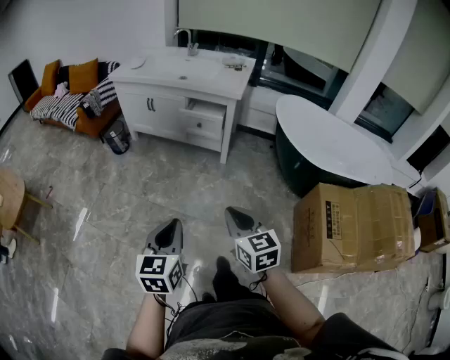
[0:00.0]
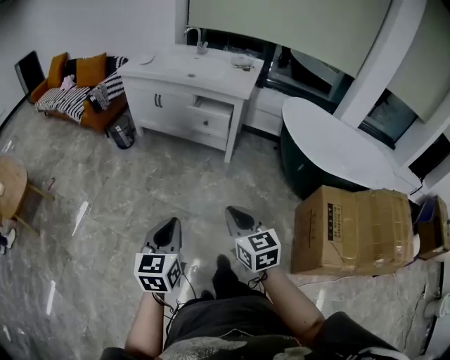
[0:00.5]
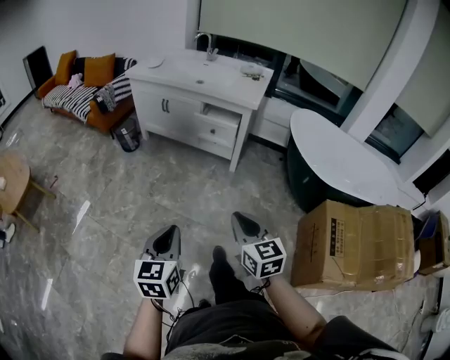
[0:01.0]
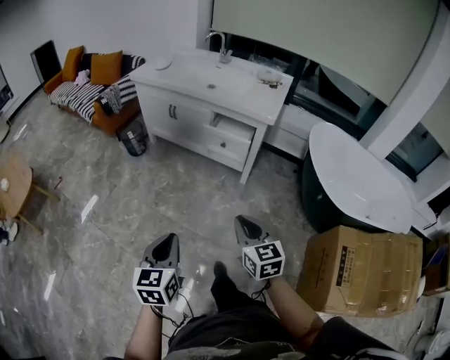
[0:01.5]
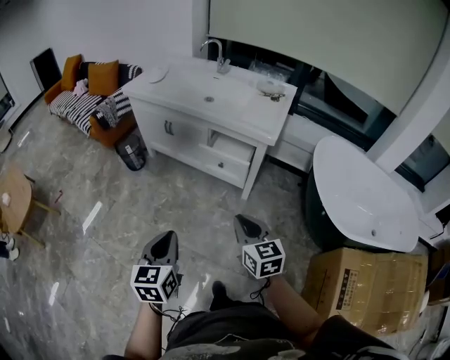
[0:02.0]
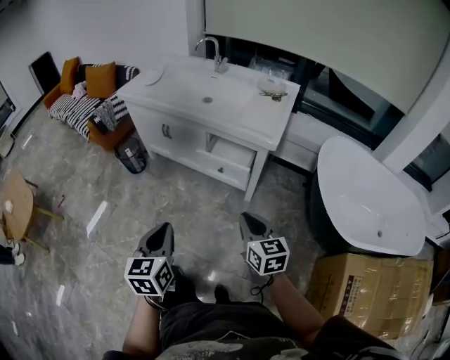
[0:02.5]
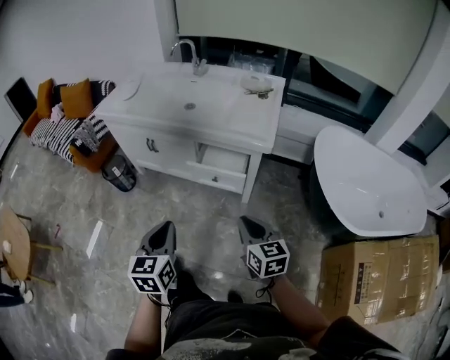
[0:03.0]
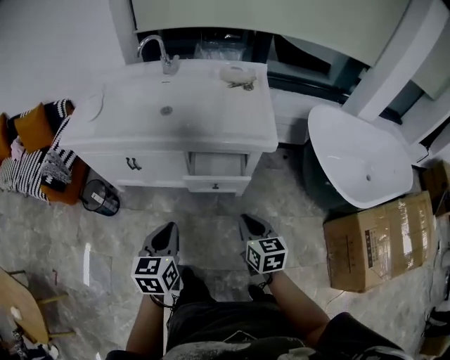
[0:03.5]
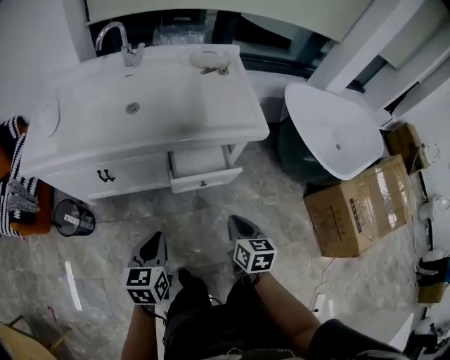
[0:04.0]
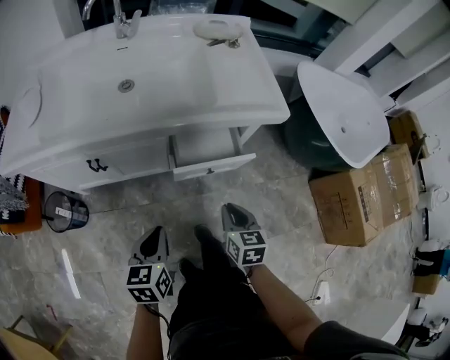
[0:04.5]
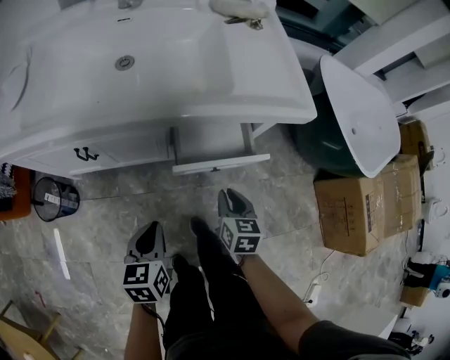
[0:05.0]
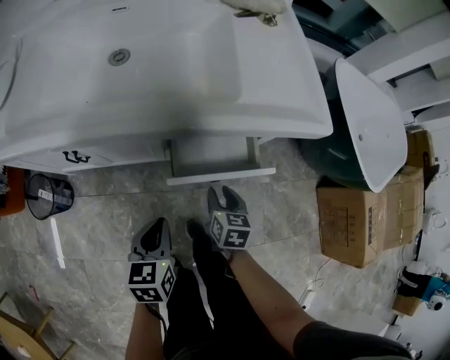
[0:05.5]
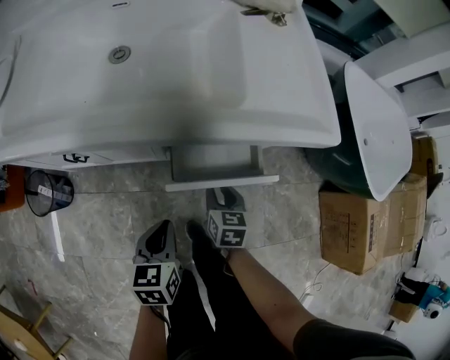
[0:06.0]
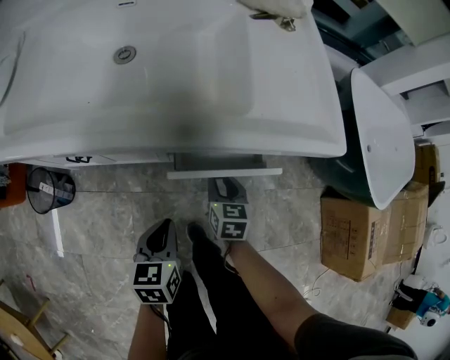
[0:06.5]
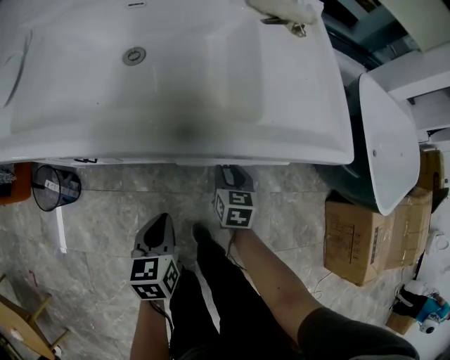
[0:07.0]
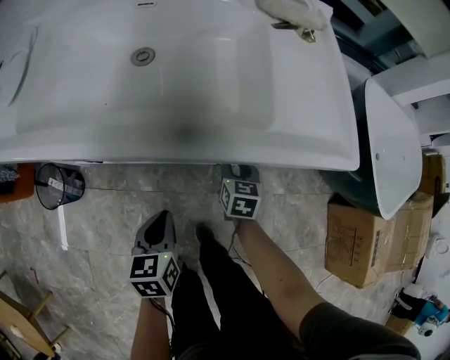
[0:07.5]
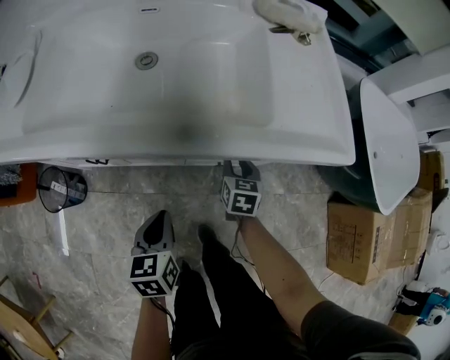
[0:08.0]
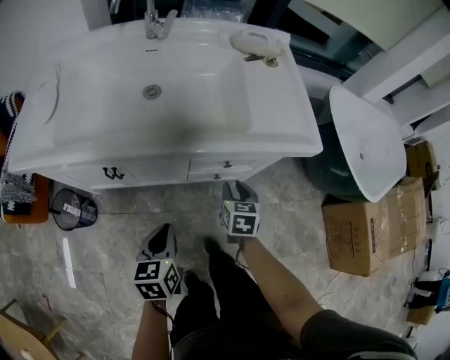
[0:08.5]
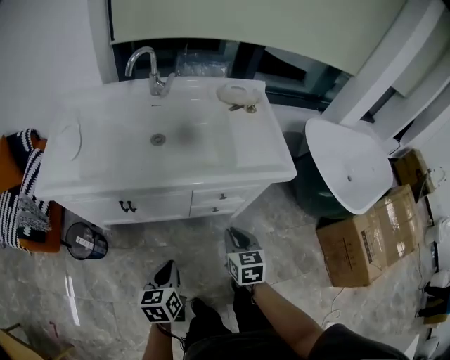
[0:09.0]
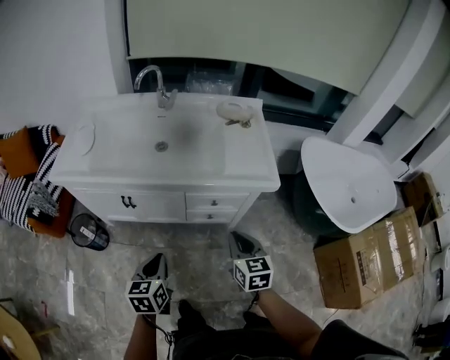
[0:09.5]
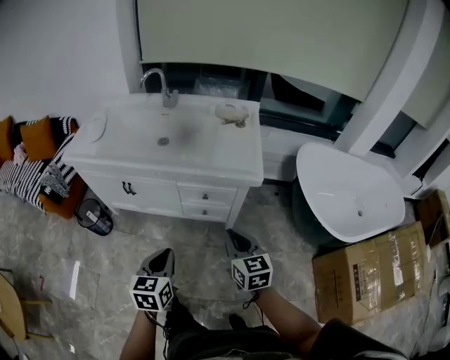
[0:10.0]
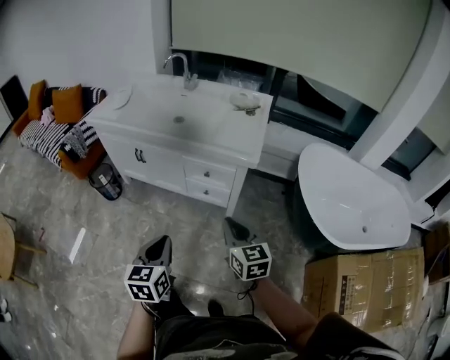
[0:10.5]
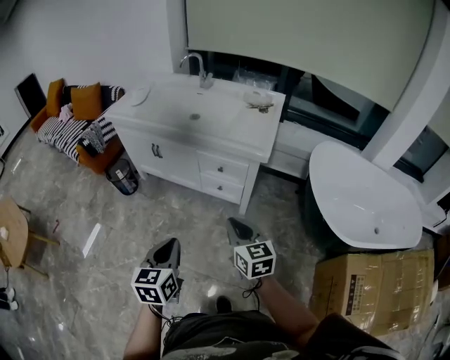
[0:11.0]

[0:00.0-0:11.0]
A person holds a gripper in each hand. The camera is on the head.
0:00.0 to 0:02.0: The grippers both shift forward by some 30 cm.
0:02.0 to 0:03.5: The left gripper moves some 35 cm, and turns by about 30 degrees, while the right gripper ends up some 25 cm from where it was, and rotates some 30 degrees.
0:03.5 to 0:05.5: The grippers both shift downward and forward by some 30 cm. The right gripper rotates approximately 20 degrees, and opens.
0:05.5 to 0:07.5: The right gripper heads forward, covering about 15 cm; the left gripper travels forward by roughly 5 cm.
0:07.5 to 0:09.0: The left gripper travels upward and backward by approximately 20 cm, while the right gripper goes roughly 30 cm upward and backward.
0:09.0 to 0:11.0: The right gripper shifts by some 35 cm, and turns by some 40 degrees. The left gripper moves roughly 40 cm, and changes its angle by approximately 30 degrees.

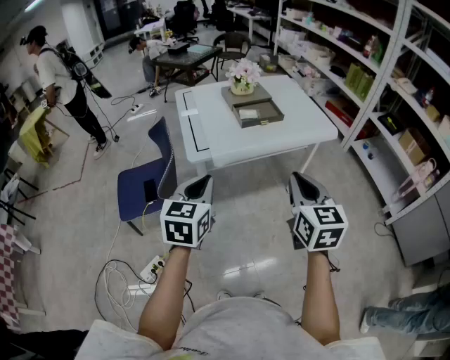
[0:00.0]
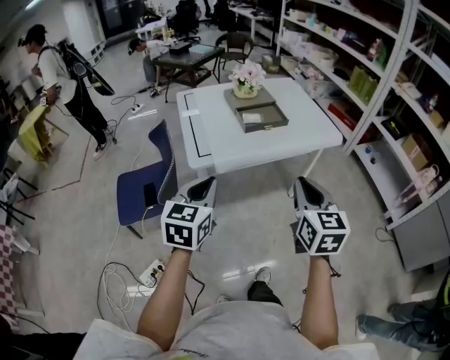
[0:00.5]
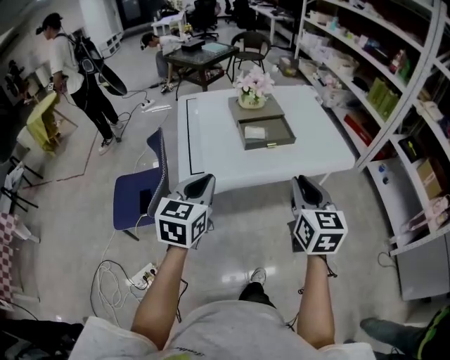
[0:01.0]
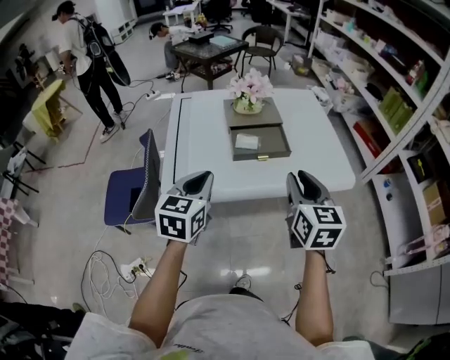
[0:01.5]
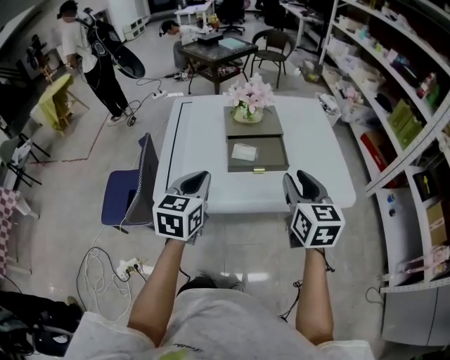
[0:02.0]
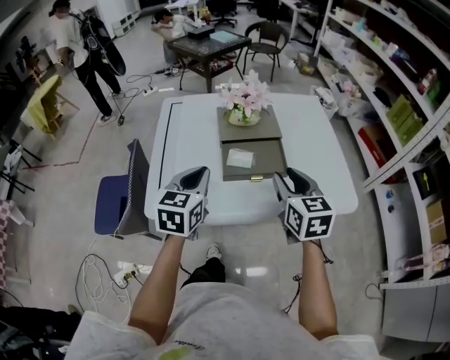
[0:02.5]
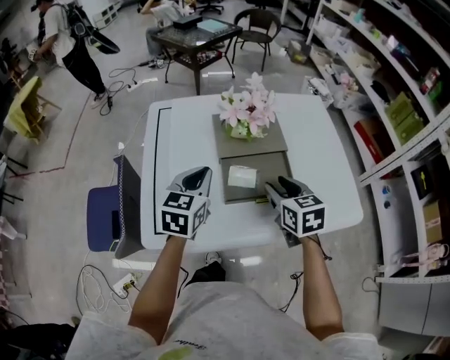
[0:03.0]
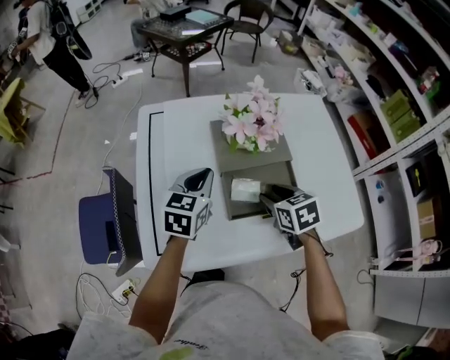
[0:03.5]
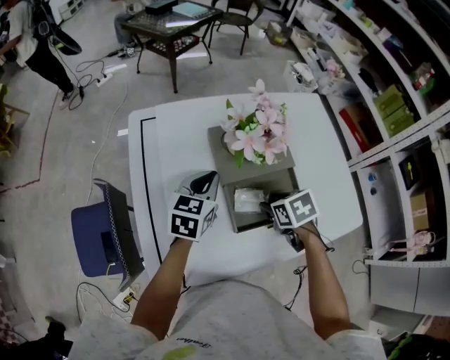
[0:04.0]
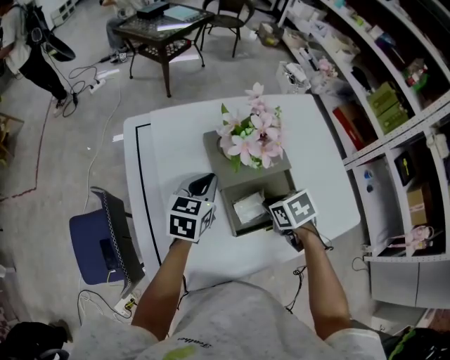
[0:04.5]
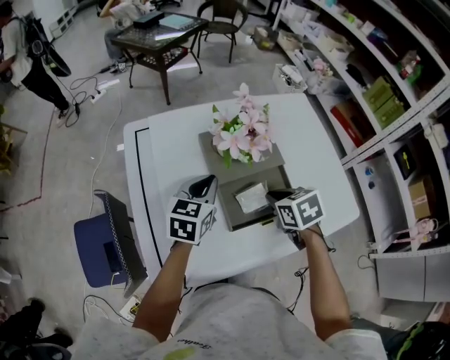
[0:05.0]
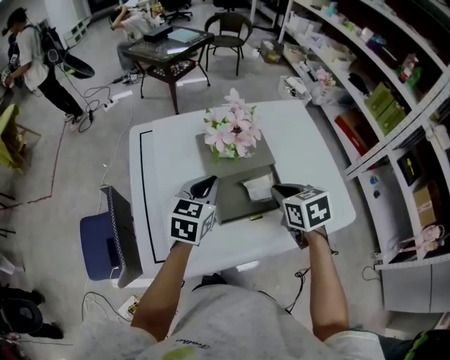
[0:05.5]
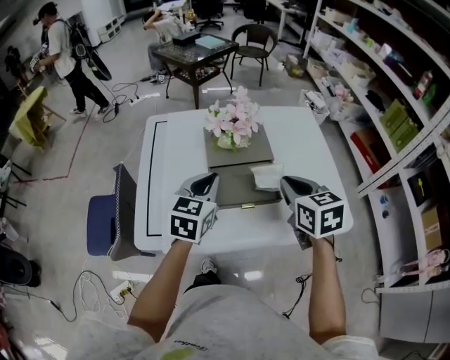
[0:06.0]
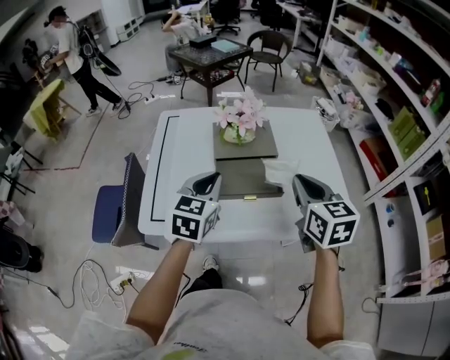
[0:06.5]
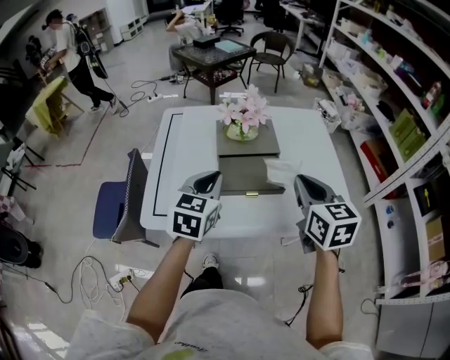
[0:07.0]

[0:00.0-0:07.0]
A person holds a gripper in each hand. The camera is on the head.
0:00.0 to 0:02.0: The grippers both shift forward by approximately 30 cm. The right gripper opens.
0:02.0 to 0:03.5: The right gripper is displaced forward and downward by roughly 25 cm, and tilts its fingers approximately 40 degrees downward, while the left gripper shifts about 25 cm forward.
0:03.5 to 0:05.0: The right gripper closes up.
0:05.0 to 0:07.0: The right gripper goes about 20 cm upward, backward and to the right, and angles its fingers upward, by some 40 degrees; the left gripper shifts roughly 20 cm backward and upward.

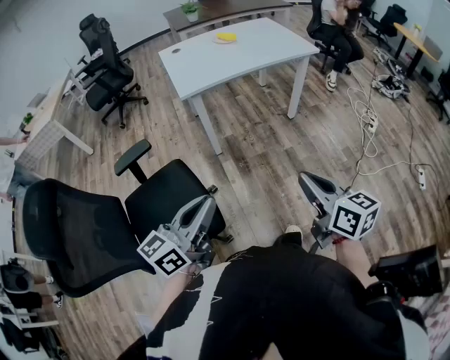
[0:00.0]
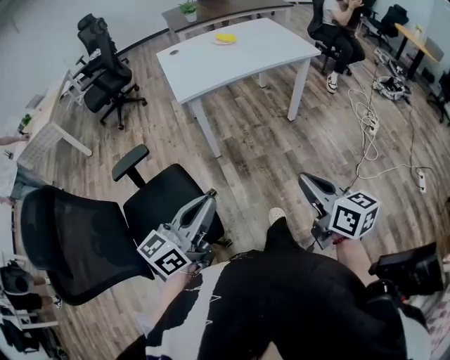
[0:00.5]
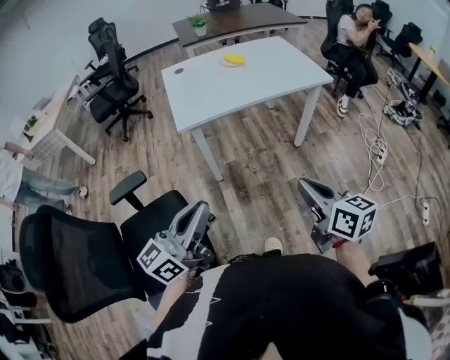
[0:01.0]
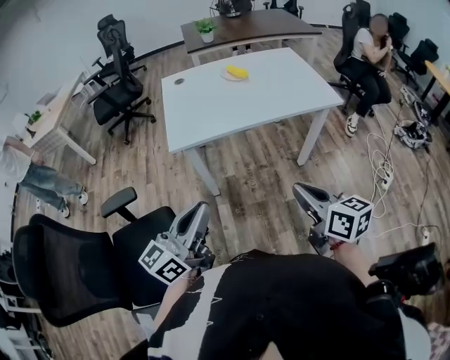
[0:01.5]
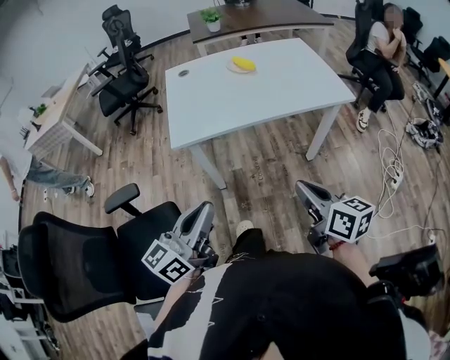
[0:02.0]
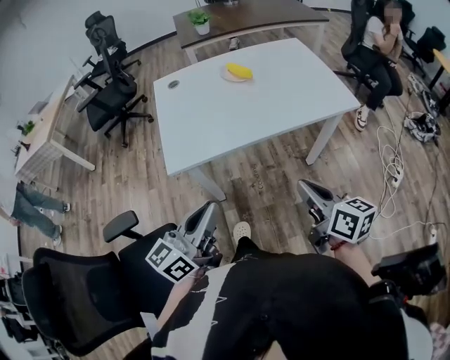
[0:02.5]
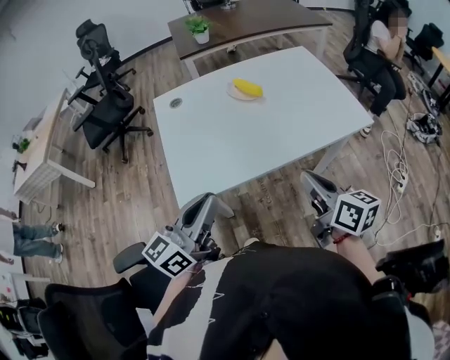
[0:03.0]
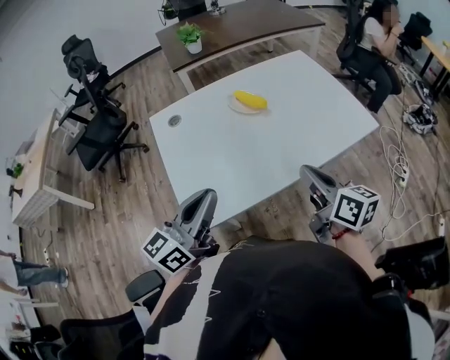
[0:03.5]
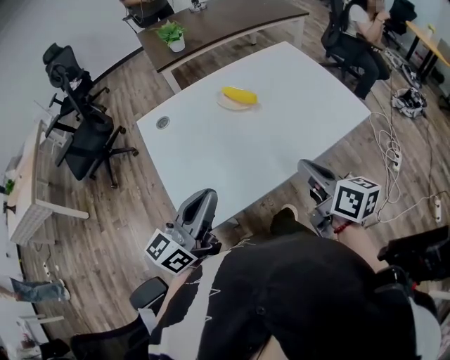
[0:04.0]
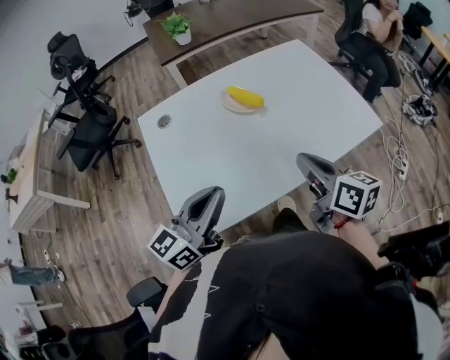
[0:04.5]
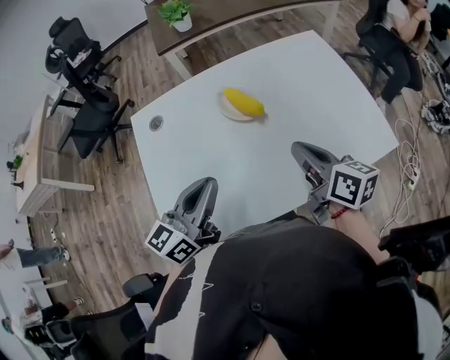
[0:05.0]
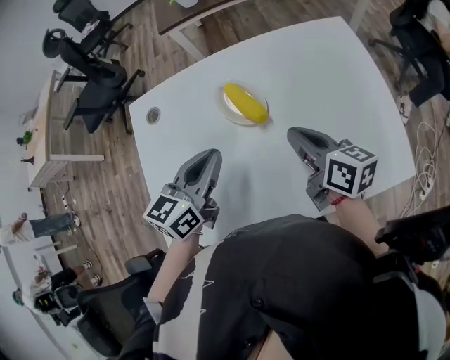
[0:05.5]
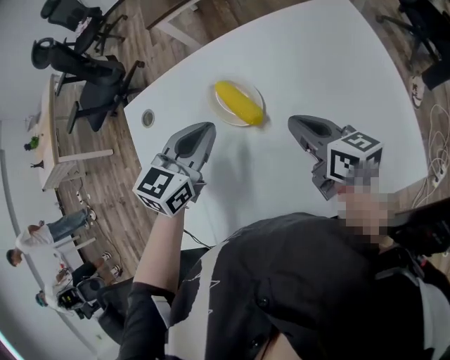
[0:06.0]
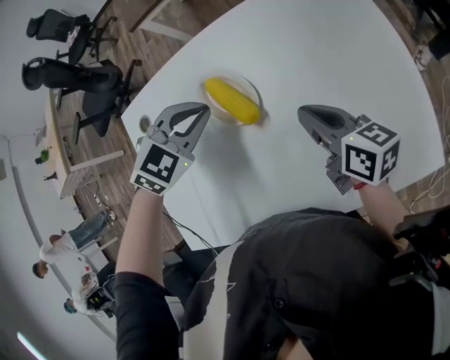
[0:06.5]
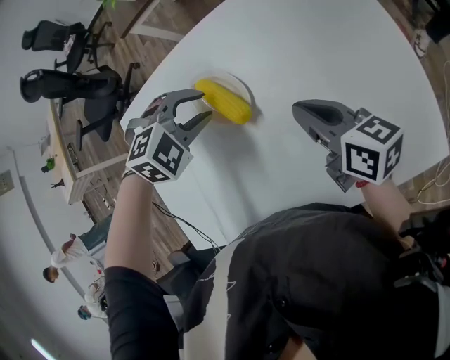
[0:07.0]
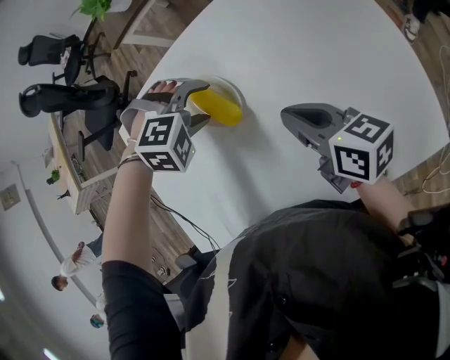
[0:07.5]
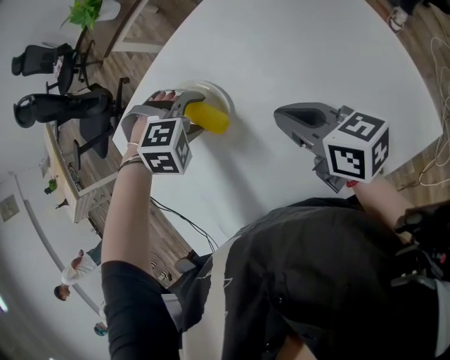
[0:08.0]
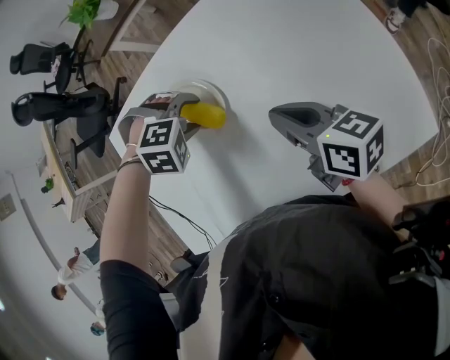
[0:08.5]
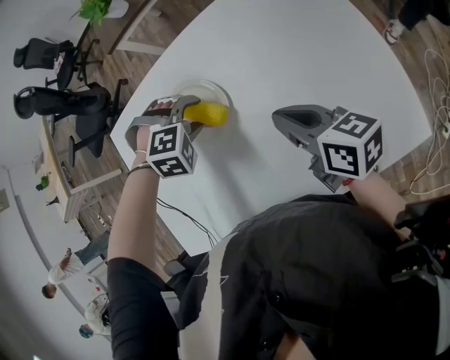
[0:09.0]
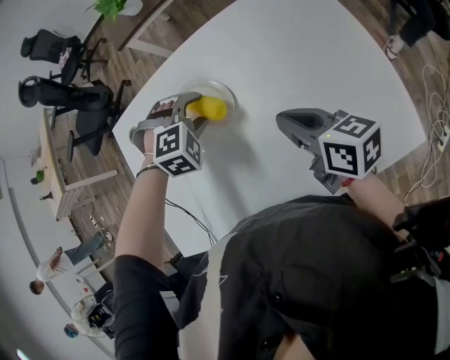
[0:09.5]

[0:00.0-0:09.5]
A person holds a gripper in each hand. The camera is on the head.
0:00.0 to 0:02.0: Both grippers travel together forward, roughly 35 cm.
0:02.0 to 0:04.0: The grippers both shift forward by about 35 cm.
0:04.0 to 0:05.5: The left gripper goes about 30 cm forward and to the right, and swivels approximately 30 degrees; the right gripper moves forward, roughly 30 cm, and rotates some 20 degrees.
0:05.5 to 0:07.5: The right gripper shifts about 5 cm downward, while the left gripper changes place by some 20 cm, points its fingers about 60 degrees further downward, and opens.
0:07.5 to 0:09.5: The left gripper swivels roughly 20 degrees.
